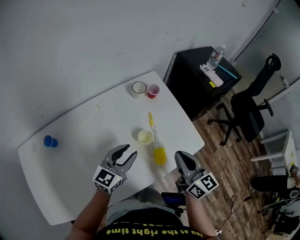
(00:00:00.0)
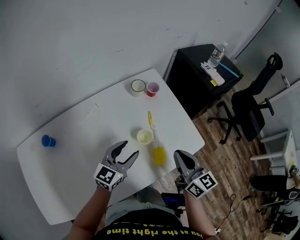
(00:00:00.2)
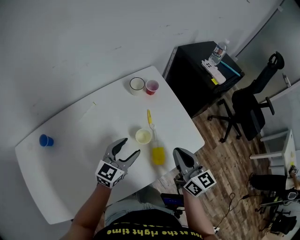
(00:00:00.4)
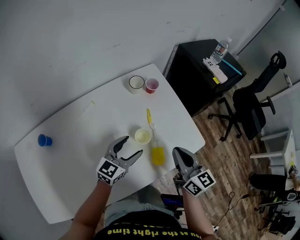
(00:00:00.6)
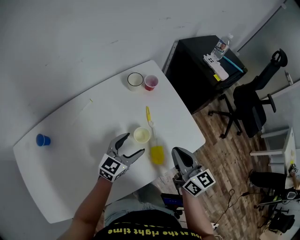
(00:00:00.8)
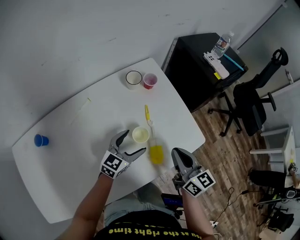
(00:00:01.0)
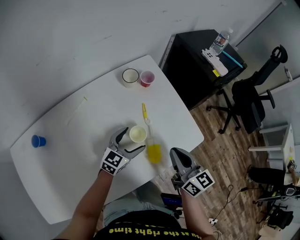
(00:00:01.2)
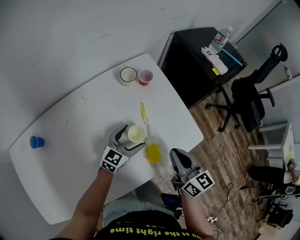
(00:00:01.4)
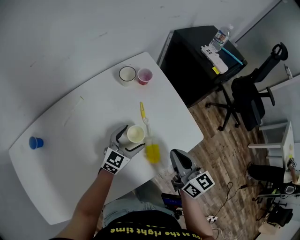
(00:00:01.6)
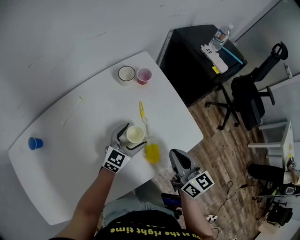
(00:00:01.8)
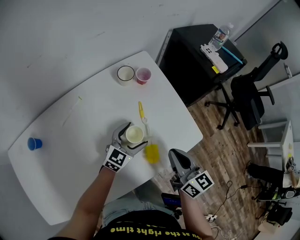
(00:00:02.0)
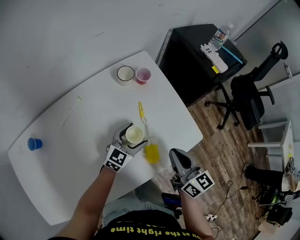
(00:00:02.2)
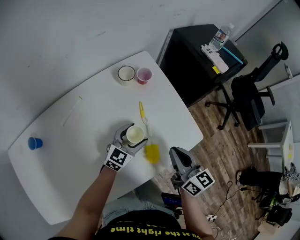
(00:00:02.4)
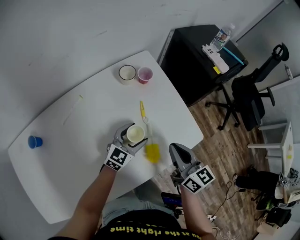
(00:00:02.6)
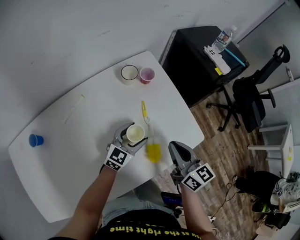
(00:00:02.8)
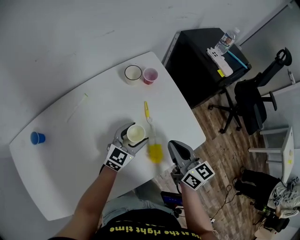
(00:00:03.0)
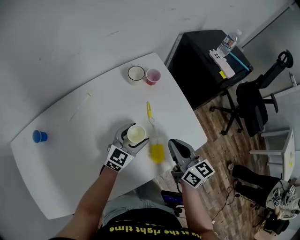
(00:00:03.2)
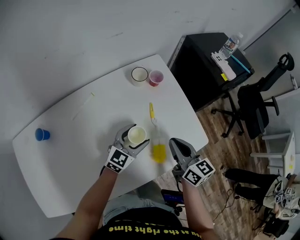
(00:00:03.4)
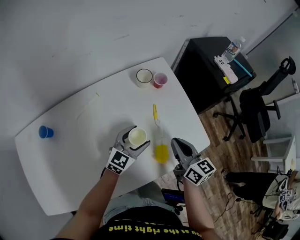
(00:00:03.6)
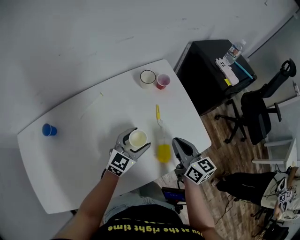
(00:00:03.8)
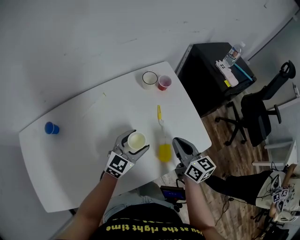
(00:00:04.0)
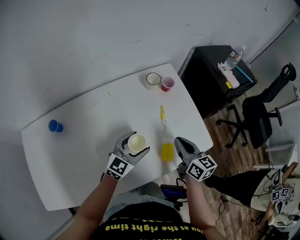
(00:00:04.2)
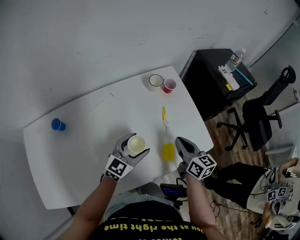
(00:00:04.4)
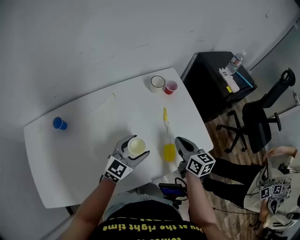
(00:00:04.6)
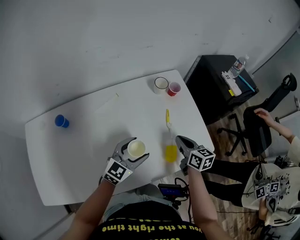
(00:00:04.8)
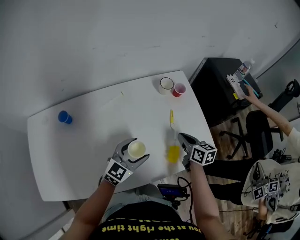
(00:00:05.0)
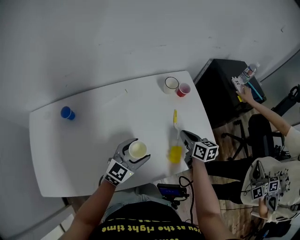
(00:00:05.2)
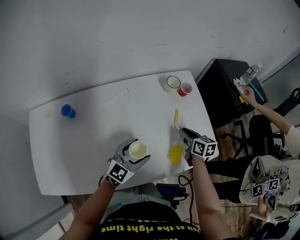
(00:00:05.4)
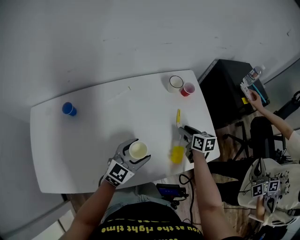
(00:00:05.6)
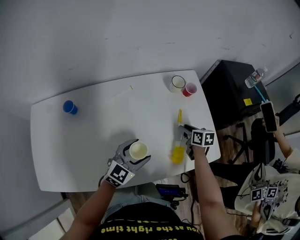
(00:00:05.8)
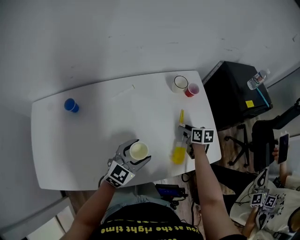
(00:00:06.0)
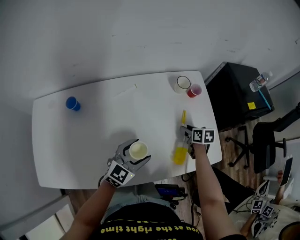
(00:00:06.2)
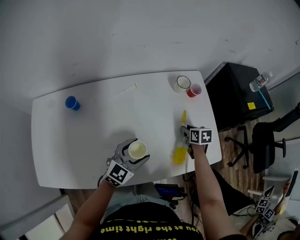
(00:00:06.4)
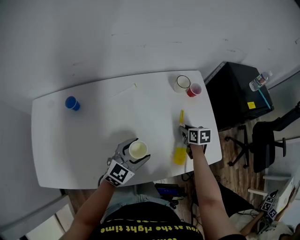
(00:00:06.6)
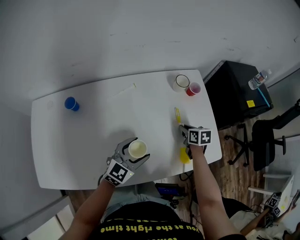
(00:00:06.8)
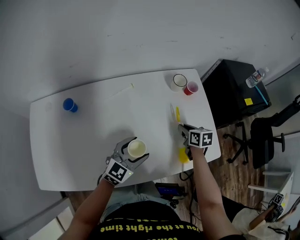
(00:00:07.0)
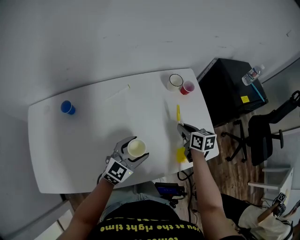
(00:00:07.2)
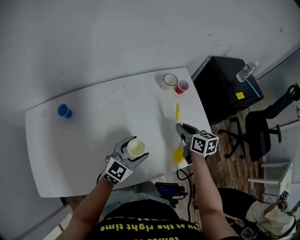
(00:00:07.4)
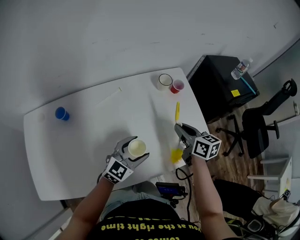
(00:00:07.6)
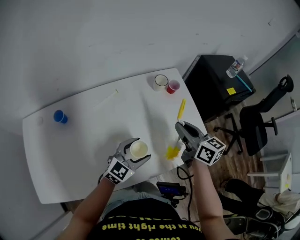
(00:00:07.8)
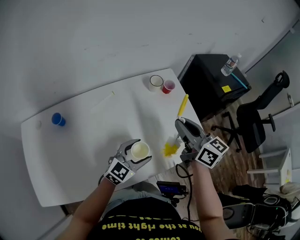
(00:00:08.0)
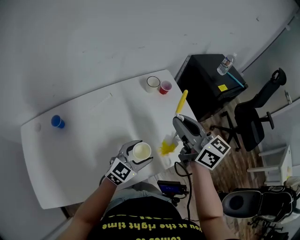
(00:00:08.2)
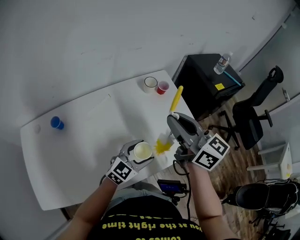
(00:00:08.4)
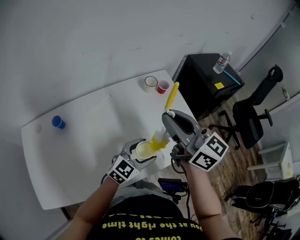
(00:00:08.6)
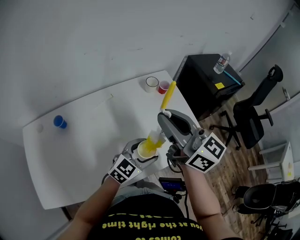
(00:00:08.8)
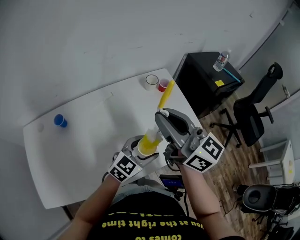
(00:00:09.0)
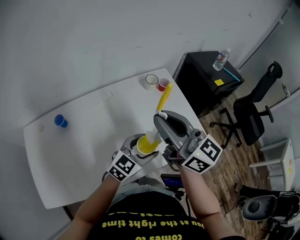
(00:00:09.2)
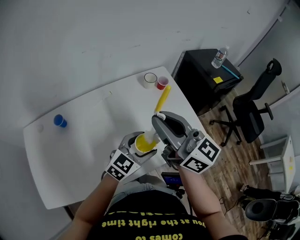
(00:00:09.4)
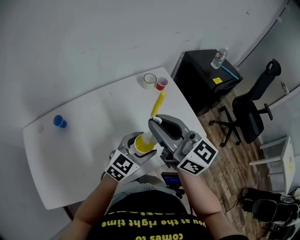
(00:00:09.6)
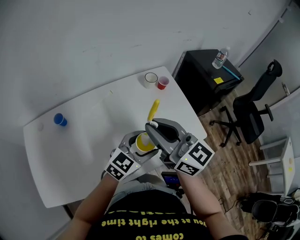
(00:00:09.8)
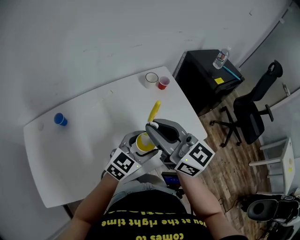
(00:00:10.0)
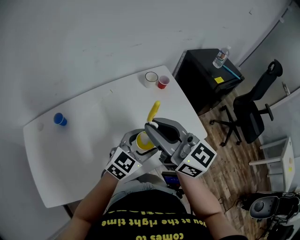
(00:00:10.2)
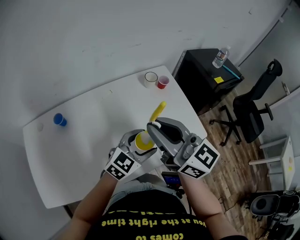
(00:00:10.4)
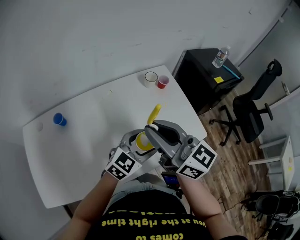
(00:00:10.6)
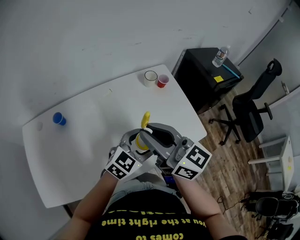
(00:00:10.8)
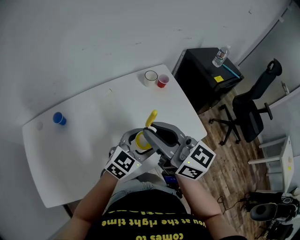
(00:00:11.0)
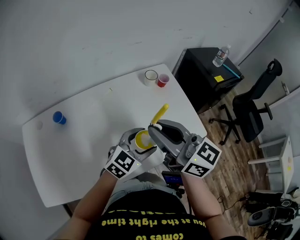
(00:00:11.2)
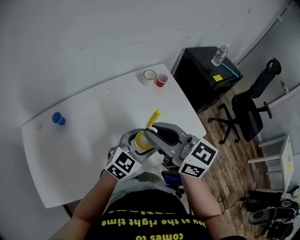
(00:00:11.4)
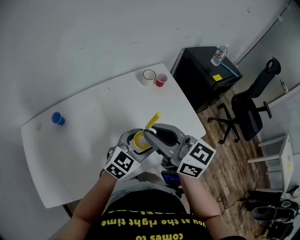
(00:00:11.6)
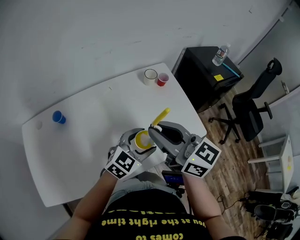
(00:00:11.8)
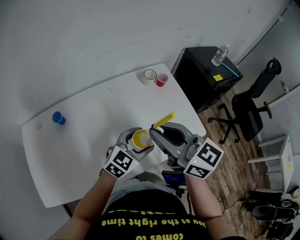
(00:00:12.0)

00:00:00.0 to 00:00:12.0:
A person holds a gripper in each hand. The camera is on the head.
00:00:00.0 to 00:00:01.6: The left gripper travels downward, forward and to the right by some 15 cm, and opens; the right gripper heads downward, covering about 5 cm.
00:00:01.6 to 00:00:03.0: The grippers stay close to where they were, moving slightly.
00:00:03.0 to 00:00:04.4: The left gripper travels backward, to the left and upward by approximately 15 cm.
00:00:04.4 to 00:00:06.0: The right gripper heads downward and forward, covering about 15 cm, rotates approximately 30 degrees, and opens. The left gripper moves approximately 5 cm.
00:00:06.0 to 00:00:07.6: The right gripper shifts approximately 15 cm upward, swivels roughly 20 degrees, and closes up.
00:00:07.6 to 00:00:09.0: The right gripper travels upward by approximately 25 cm, and tilts its fingers about 40 degrees upward, while the left gripper goes some 10 cm to the right and upward.
00:00:09.0 to 00:00:10.4: The grippers stay close to where they were, moving slightly.
00:00:10.4 to 00:00:12.0: The grippers move only a little.

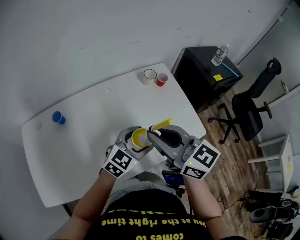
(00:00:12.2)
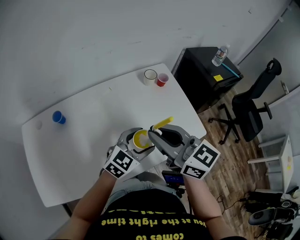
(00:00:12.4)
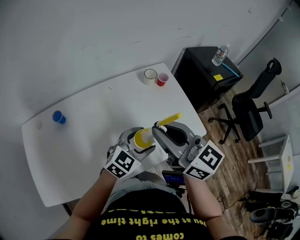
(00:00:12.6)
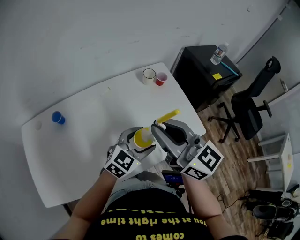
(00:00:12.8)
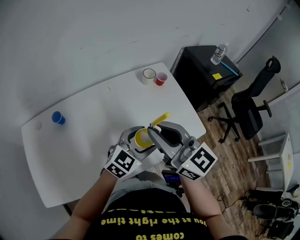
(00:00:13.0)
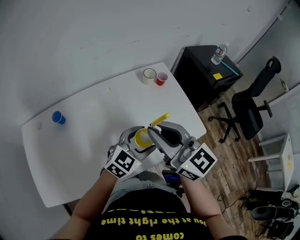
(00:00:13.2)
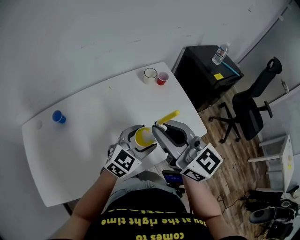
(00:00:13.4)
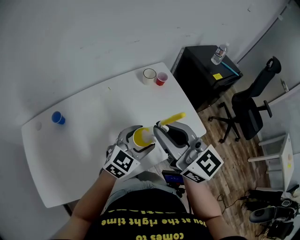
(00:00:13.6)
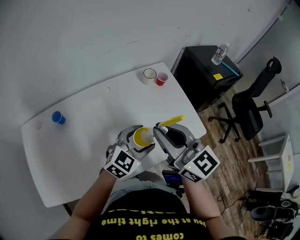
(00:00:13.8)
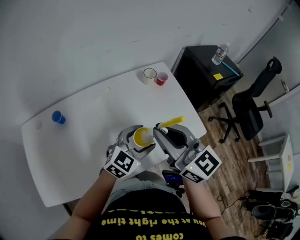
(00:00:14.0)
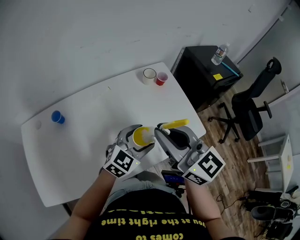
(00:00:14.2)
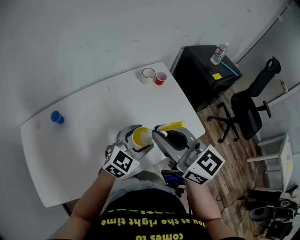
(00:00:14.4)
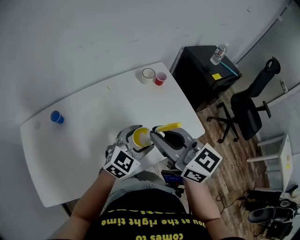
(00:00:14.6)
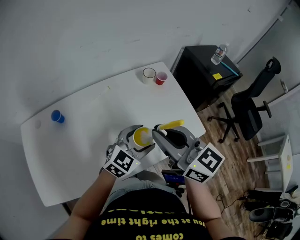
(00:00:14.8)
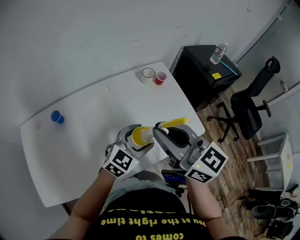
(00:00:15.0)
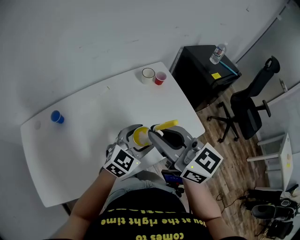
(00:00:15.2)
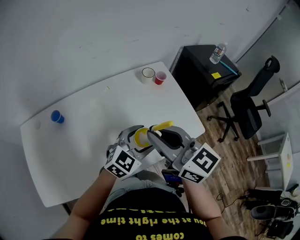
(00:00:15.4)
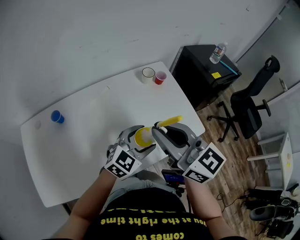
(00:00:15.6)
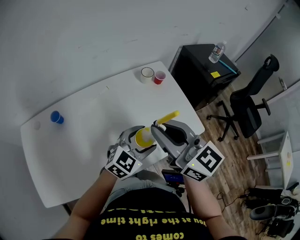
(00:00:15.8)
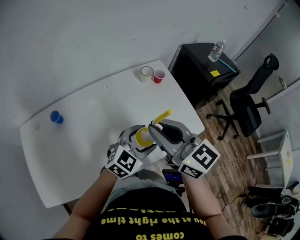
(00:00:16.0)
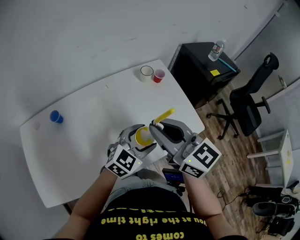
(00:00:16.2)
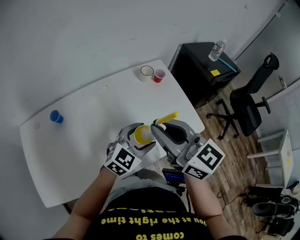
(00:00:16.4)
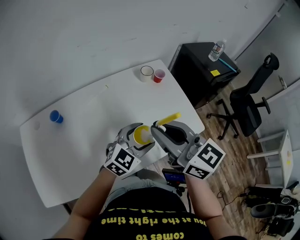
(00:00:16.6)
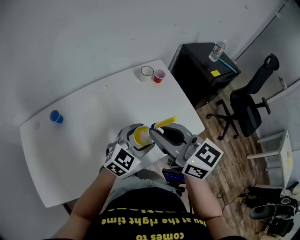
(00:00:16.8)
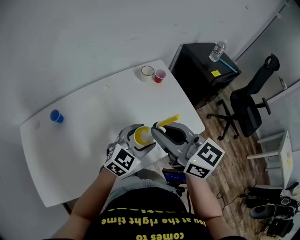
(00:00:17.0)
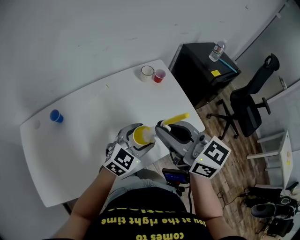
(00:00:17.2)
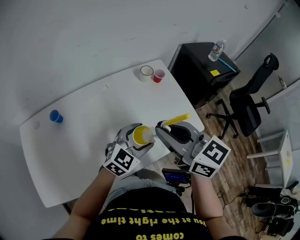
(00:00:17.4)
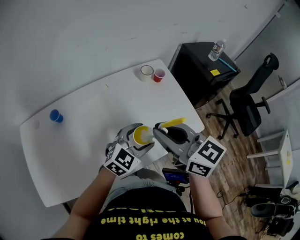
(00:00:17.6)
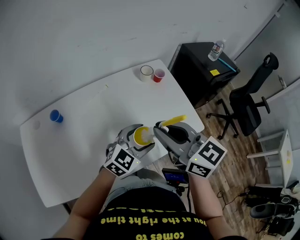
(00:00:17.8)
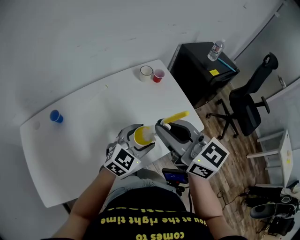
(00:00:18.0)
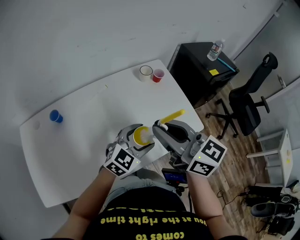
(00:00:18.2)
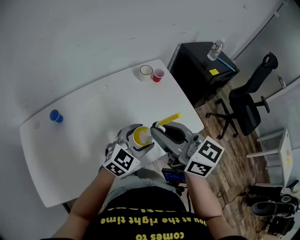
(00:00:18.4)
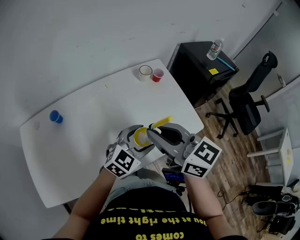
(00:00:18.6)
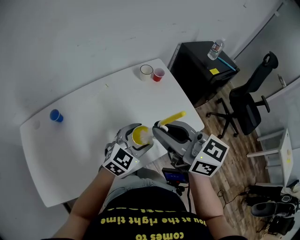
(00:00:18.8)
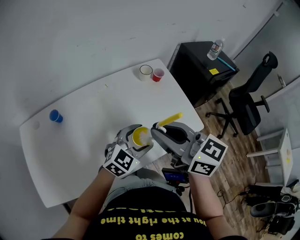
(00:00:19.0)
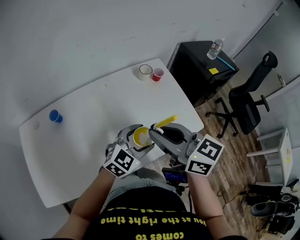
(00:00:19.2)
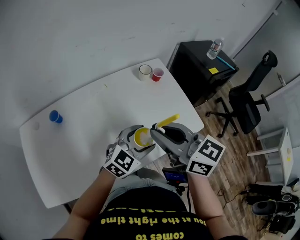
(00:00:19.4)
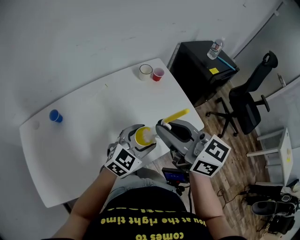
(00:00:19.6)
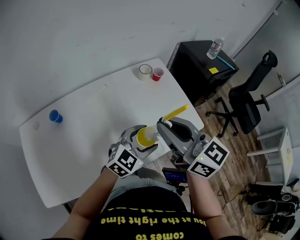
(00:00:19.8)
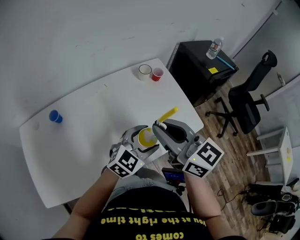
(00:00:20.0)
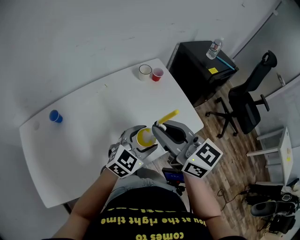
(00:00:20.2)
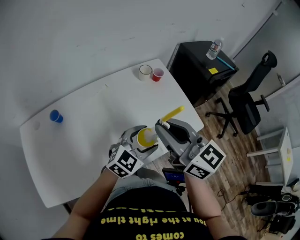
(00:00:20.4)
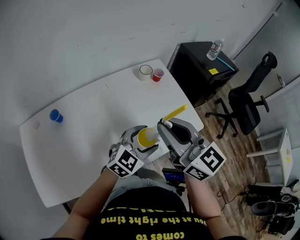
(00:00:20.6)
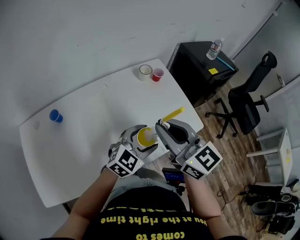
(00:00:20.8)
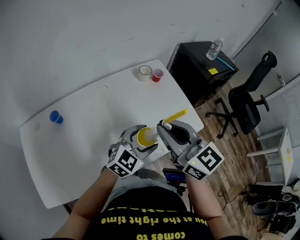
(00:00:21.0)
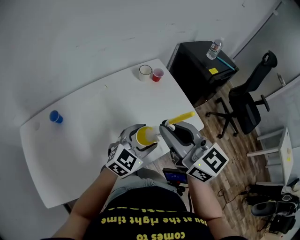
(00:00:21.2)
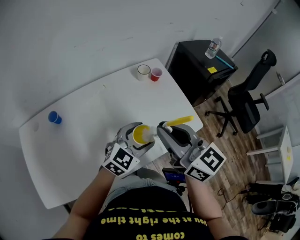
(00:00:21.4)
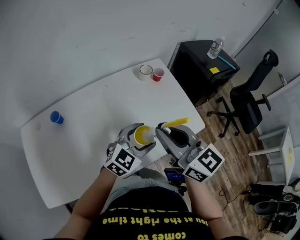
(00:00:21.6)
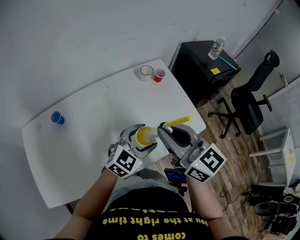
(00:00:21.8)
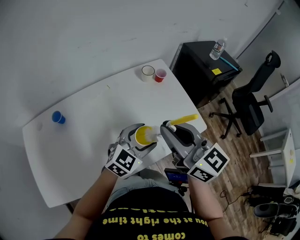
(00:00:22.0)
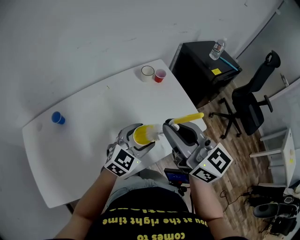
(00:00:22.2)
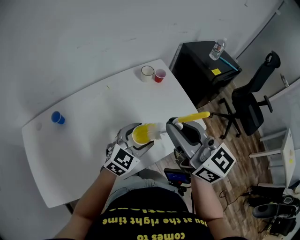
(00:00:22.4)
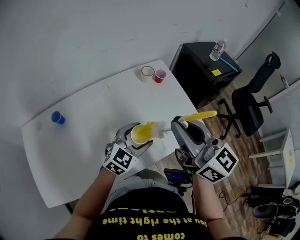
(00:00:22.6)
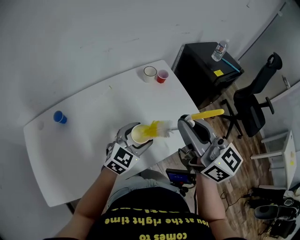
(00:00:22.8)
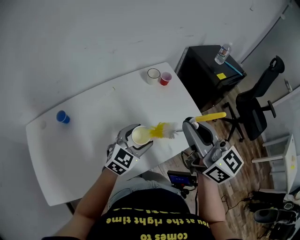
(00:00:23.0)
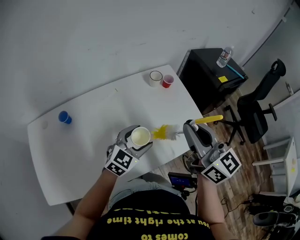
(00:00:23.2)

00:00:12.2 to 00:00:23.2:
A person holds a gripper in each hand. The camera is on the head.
00:00:12.2 to 00:00:21.6: The grippers move only a little.
00:00:21.6 to 00:00:23.2: The left gripper moves about 5 cm; the right gripper shifts some 5 cm to the right.

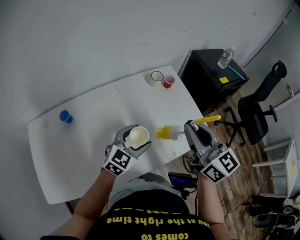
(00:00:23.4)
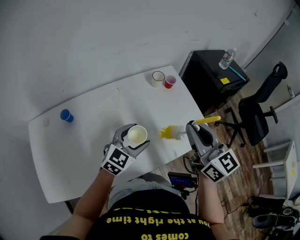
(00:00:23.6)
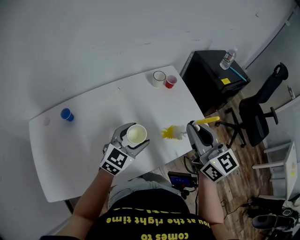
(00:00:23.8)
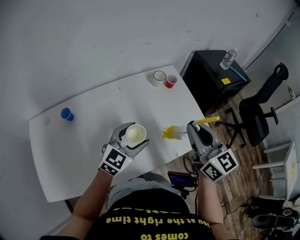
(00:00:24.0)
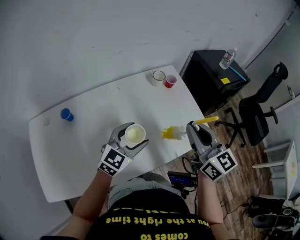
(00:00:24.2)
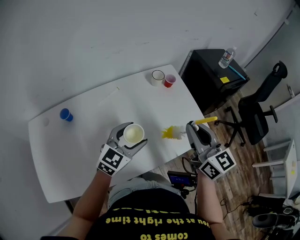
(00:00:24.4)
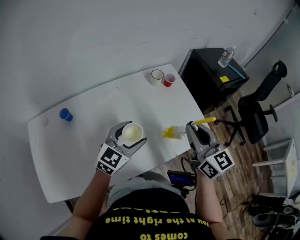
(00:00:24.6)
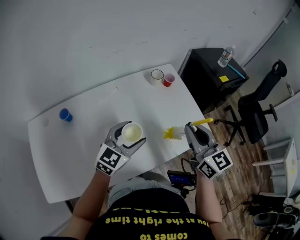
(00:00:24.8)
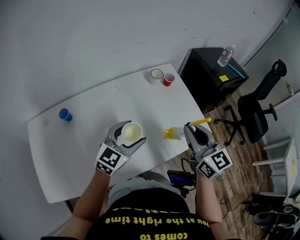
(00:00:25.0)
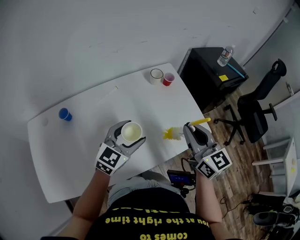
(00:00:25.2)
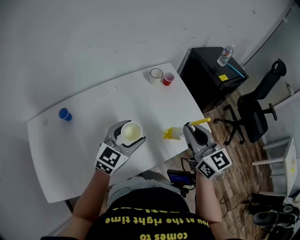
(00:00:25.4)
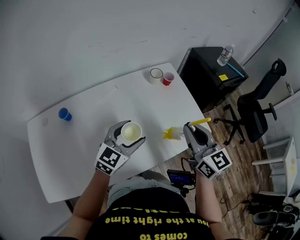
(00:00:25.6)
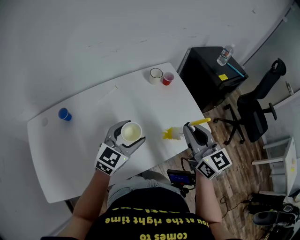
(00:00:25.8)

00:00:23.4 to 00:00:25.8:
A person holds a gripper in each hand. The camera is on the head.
00:00:23.4 to 00:00:24.6: The right gripper changes place by about 5 cm.
00:00:24.6 to 00:00:25.8: The grippers stay close to where they were, moving slightly.
